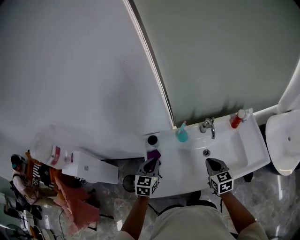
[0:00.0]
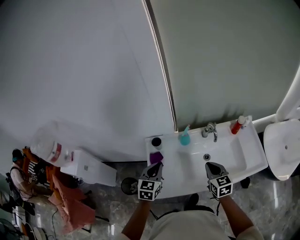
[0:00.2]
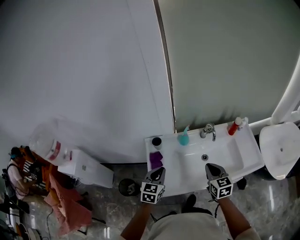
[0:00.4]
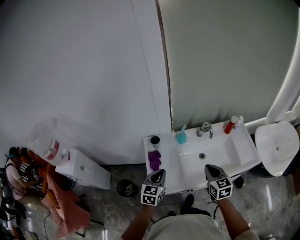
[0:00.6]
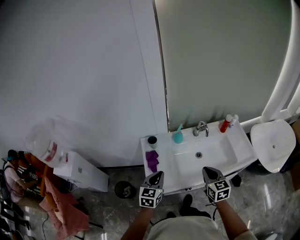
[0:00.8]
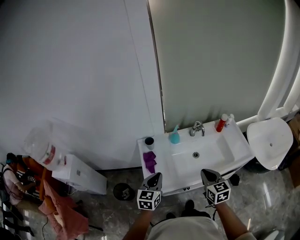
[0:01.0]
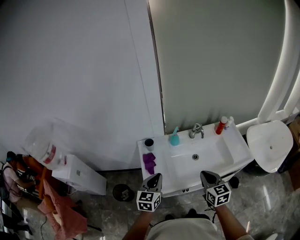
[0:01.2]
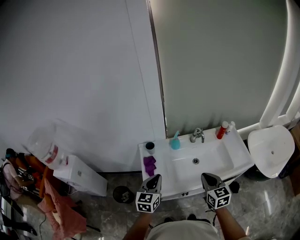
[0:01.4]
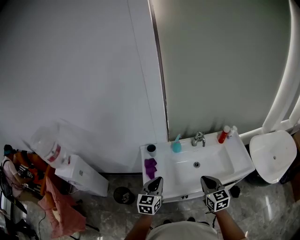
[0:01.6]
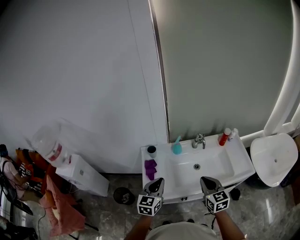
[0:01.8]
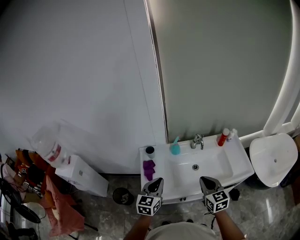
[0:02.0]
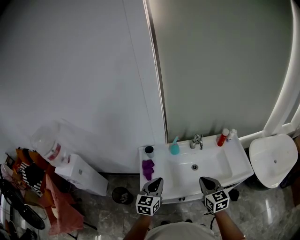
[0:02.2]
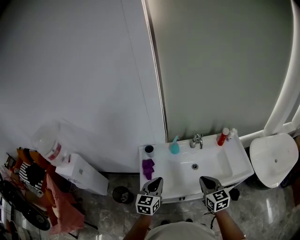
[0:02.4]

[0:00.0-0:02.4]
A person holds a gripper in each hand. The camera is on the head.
0:00.0 to 0:01.2: The left gripper is displaced backward by about 15 cm, while the right gripper moves backward and upward, some 20 cm.
0:01.2 to 0:02.4: The right gripper changes place by roughly 5 cm; the left gripper heads to the right, covering roughly 5 cm.

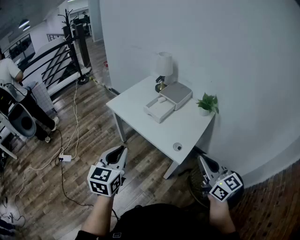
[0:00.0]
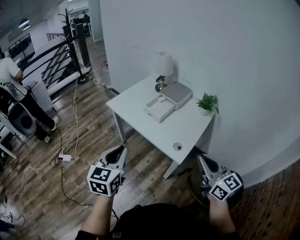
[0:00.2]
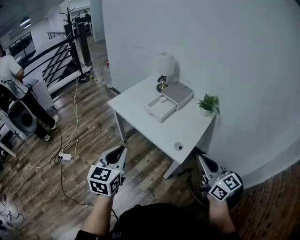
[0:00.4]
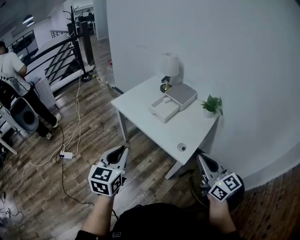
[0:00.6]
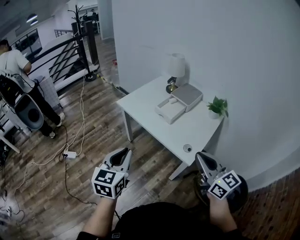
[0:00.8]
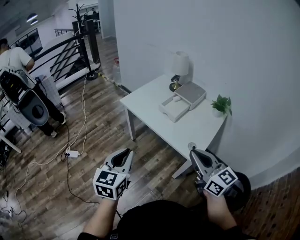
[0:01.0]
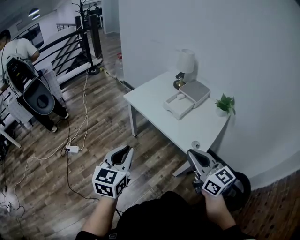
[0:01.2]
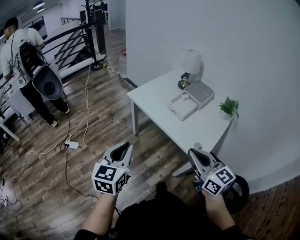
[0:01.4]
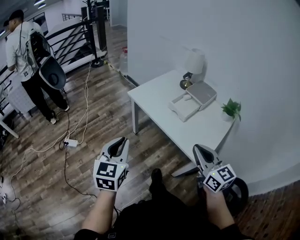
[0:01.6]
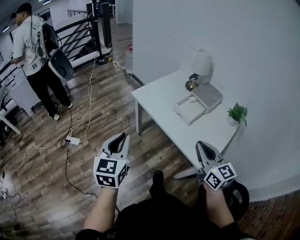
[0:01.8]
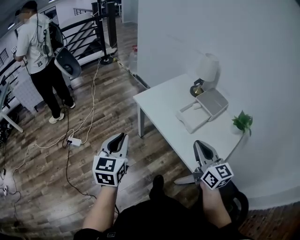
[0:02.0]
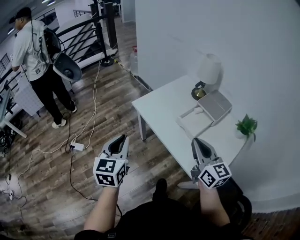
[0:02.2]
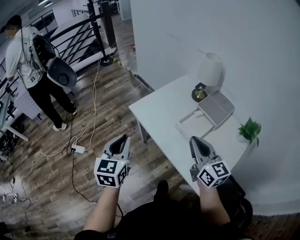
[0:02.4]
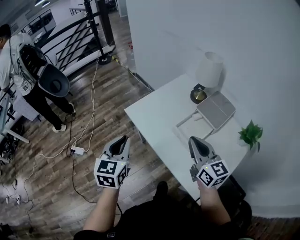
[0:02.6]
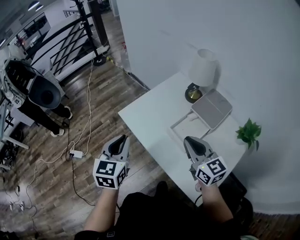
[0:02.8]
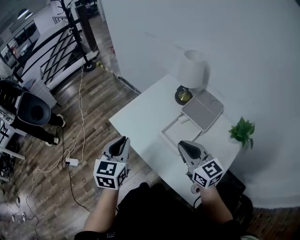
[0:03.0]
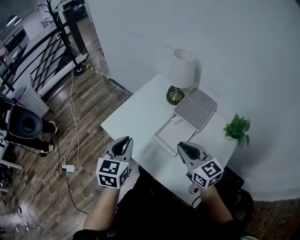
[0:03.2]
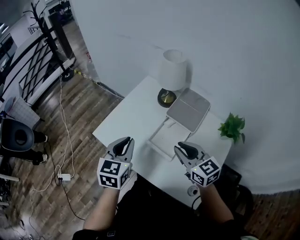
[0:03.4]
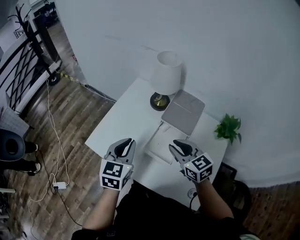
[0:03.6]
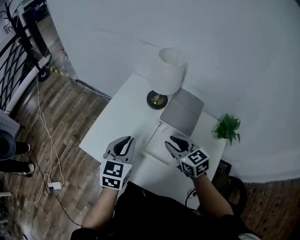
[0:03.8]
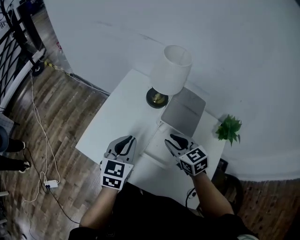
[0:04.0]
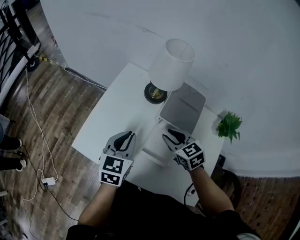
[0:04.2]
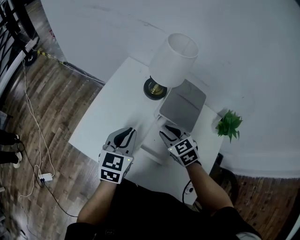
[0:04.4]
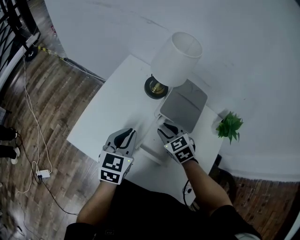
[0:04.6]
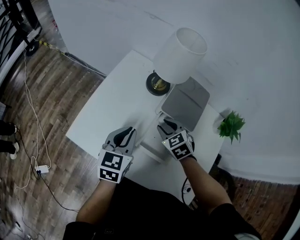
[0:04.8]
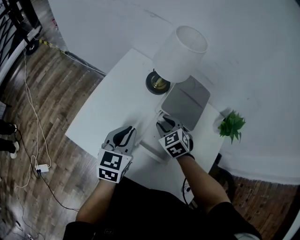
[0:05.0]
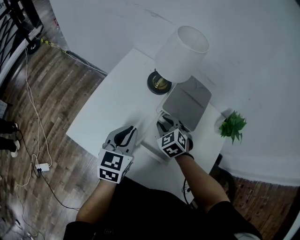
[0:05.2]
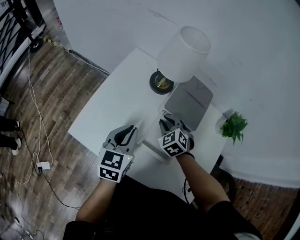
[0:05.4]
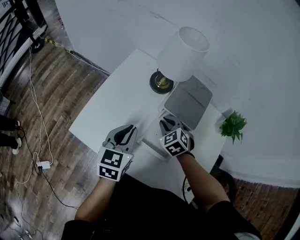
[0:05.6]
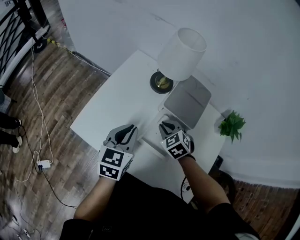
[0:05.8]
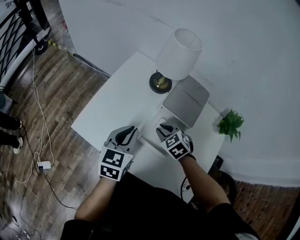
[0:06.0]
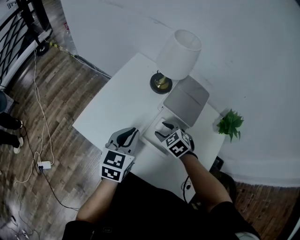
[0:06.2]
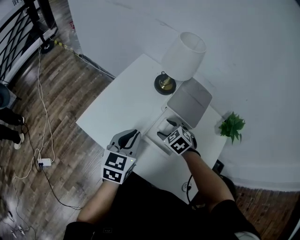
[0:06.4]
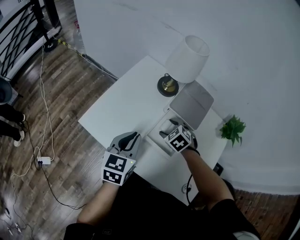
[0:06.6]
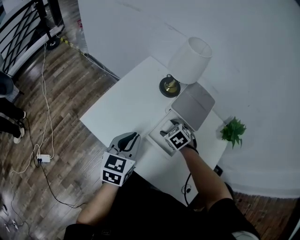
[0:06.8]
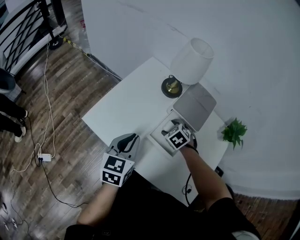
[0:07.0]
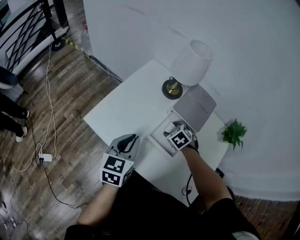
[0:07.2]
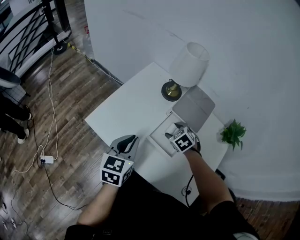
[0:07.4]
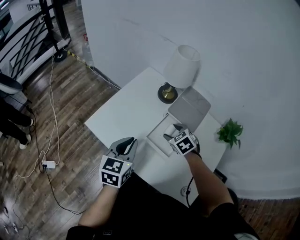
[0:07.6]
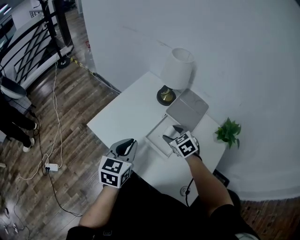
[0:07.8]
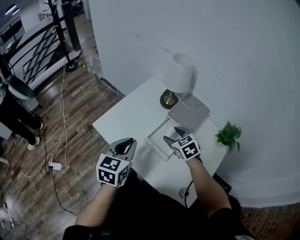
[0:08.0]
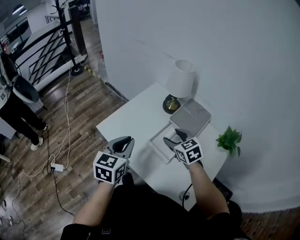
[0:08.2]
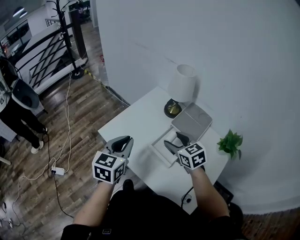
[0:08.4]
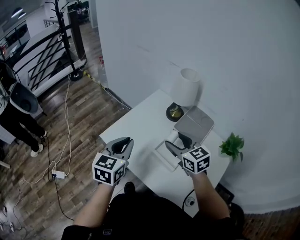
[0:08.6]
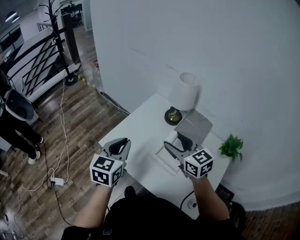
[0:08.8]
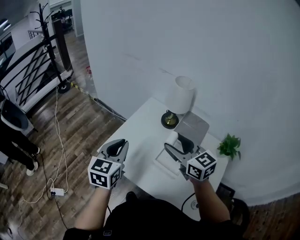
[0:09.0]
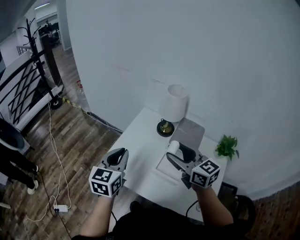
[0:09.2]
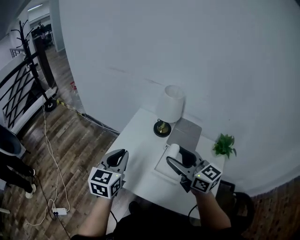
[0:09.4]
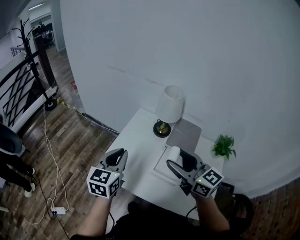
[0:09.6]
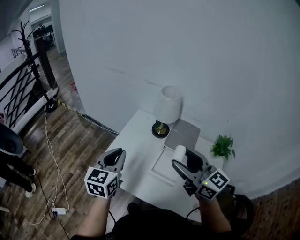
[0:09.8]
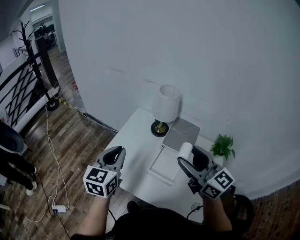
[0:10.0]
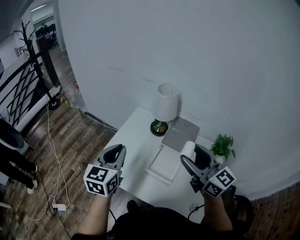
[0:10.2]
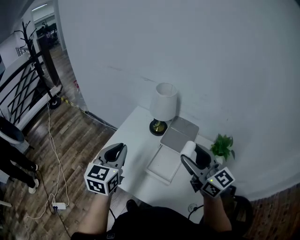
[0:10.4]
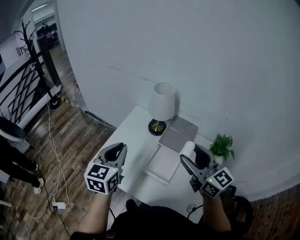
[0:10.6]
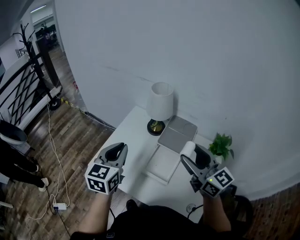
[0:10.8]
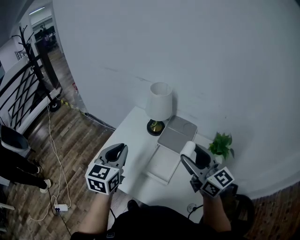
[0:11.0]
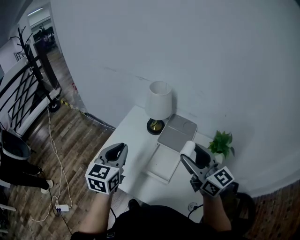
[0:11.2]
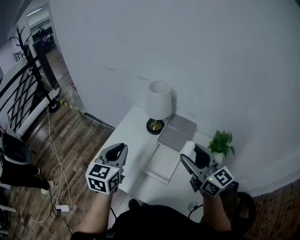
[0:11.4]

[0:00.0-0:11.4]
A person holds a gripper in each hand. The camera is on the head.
0:00.0 to 0:01.4: The two grippers go approximately 15 cm to the left.
0:01.4 to 0:02.8: Both grippers move forward, approximately 35 cm.
0:02.8 to 0:04.2: The right gripper ends up approximately 25 cm from where it was, angles its fingers downward, by approximately 30 degrees, and opens. Meanwhile the left gripper shifts by approximately 30 cm, and changes its angle by some 30 degrees.
0:04.2 to 0:05.6: The right gripper moves downward, approximately 10 cm, and changes its angle by some 30 degrees.
0:05.6 to 0:07.2: The left gripper moves backward, approximately 10 cm, while the right gripper moves roughly 5 cm, and opens.
0:07.2 to 0:08.6: The right gripper travels upward by some 25 cm, and tips its fingers upward by some 40 degrees, while the left gripper is displaced upward by about 10 cm.
0:08.6 to 0:10.0: The left gripper moves forward and upward, roughly 10 cm. Meanwhile the right gripper heads upward, covering roughly 15 cm, and changes its angle by about 30 degrees.
0:10.0 to 0:11.4: The grippers both shift to the right by some 5 cm.

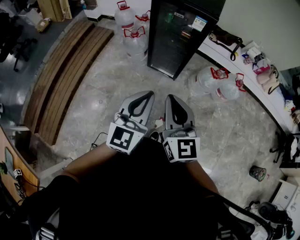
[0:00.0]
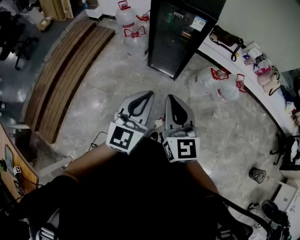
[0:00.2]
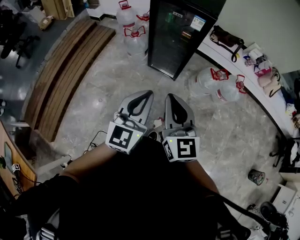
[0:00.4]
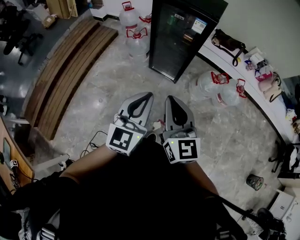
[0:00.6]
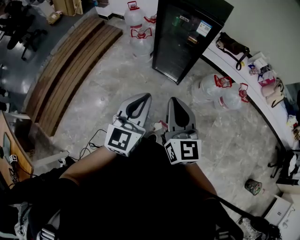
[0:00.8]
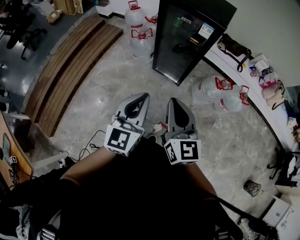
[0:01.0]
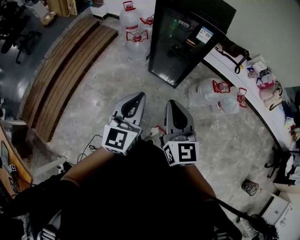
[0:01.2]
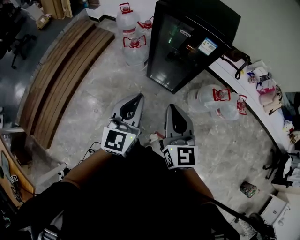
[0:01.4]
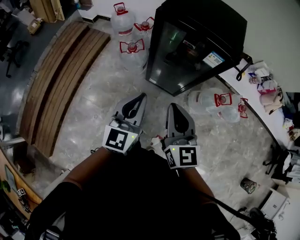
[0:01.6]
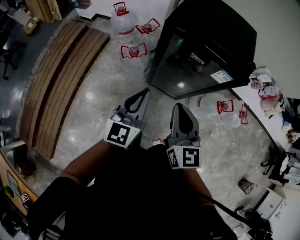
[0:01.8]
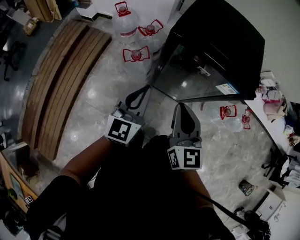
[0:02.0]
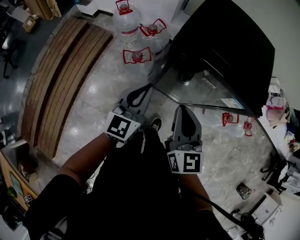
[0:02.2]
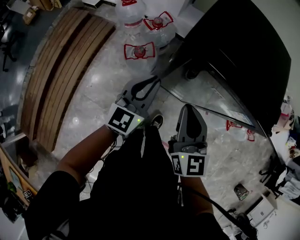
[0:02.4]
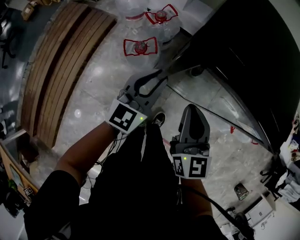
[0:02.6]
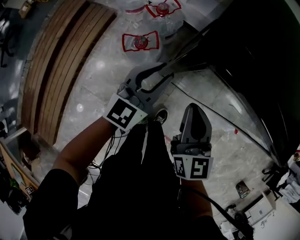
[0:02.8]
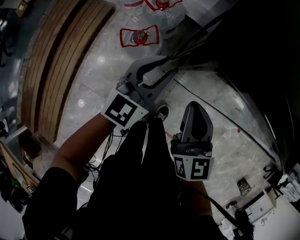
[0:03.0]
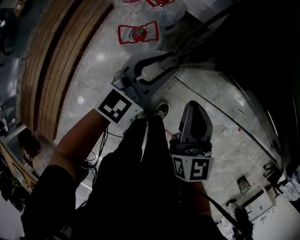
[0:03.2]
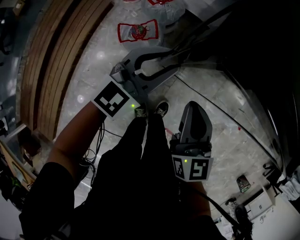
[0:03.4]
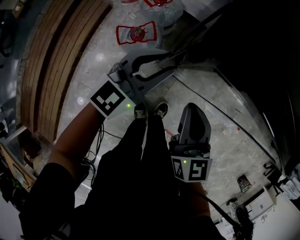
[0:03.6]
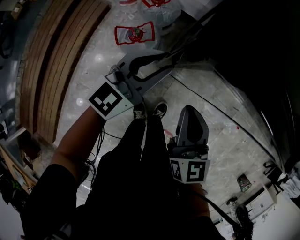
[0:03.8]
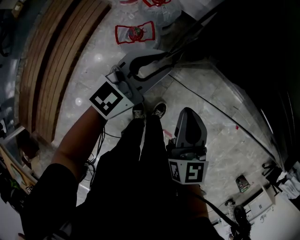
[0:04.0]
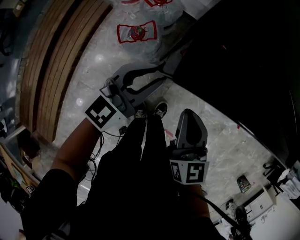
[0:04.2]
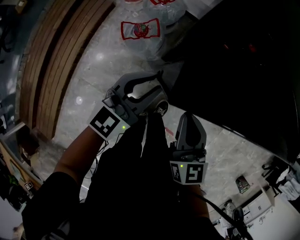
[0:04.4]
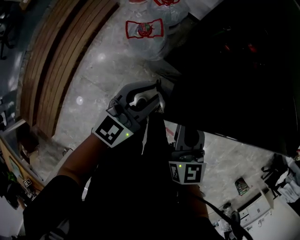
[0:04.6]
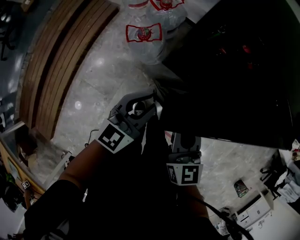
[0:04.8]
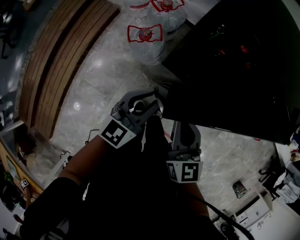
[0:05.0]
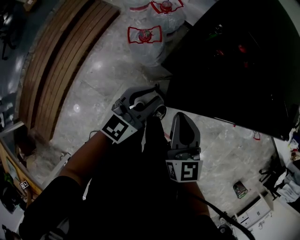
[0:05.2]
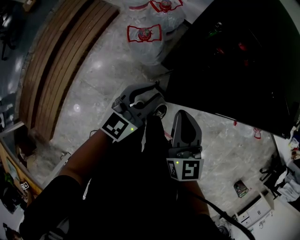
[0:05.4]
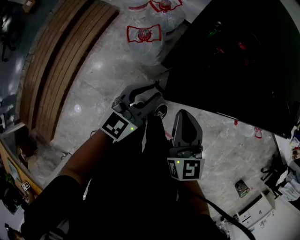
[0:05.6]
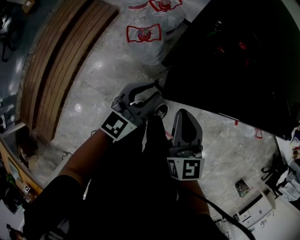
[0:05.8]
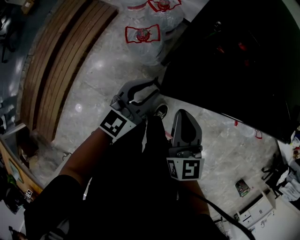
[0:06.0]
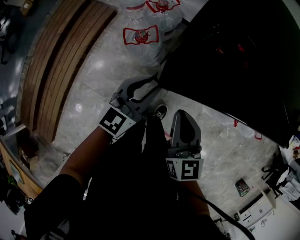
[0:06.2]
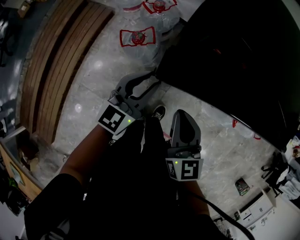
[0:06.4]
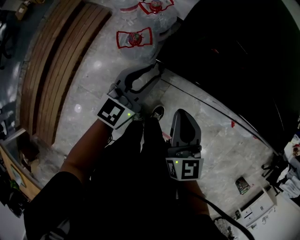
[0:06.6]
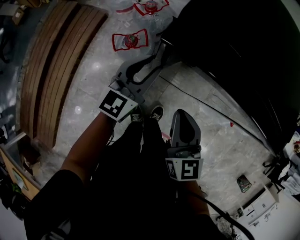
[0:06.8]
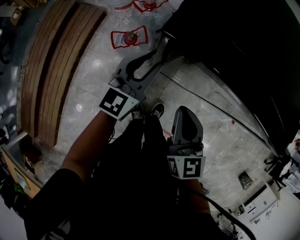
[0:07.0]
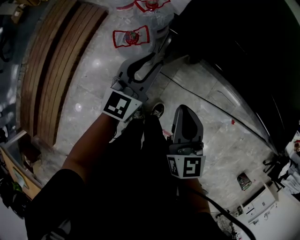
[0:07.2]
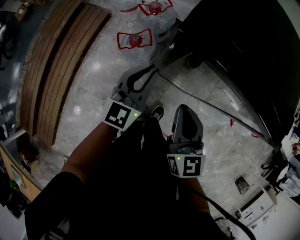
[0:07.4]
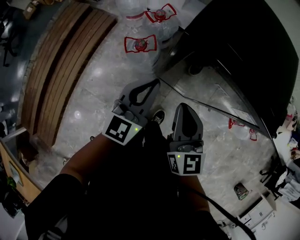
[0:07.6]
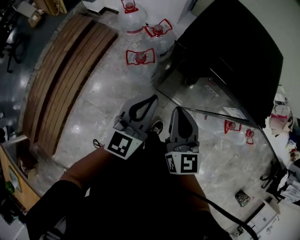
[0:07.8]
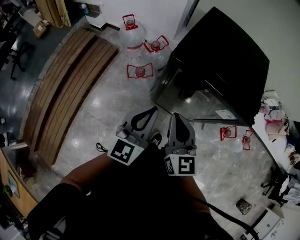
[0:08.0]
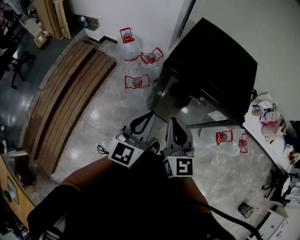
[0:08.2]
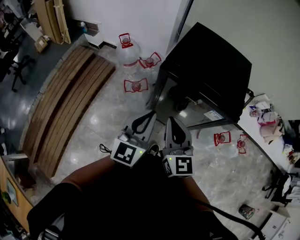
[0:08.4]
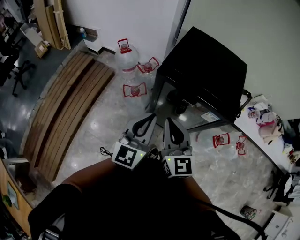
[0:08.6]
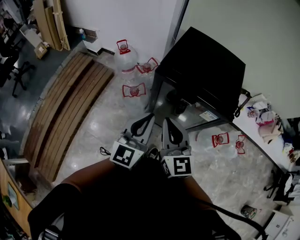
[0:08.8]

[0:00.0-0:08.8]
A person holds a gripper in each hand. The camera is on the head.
0:00.0 to 0:01.4: Both grippers travel together forward, approximately 15 cm.
0:01.4 to 0:03.0: The two grippers travel together, forward, approximately 40 cm. The two grippers go roughly 20 cm downward. The left gripper opens up.
0:03.0 to 0:04.4: The grippers both shift backward by approximately 10 cm.
0:04.4 to 0:05.8: The right gripper moves roughly 5 cm, while the left gripper moves backward, approximately 5 cm.
0:05.8 to 0:07.4: The right gripper moves forward, roughly 5 cm, while the left gripper goes some 10 cm forward.
0:07.4 to 0:08.8: The right gripper goes about 20 cm upward. The left gripper moves upward and backward, about 25 cm.

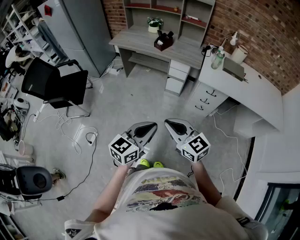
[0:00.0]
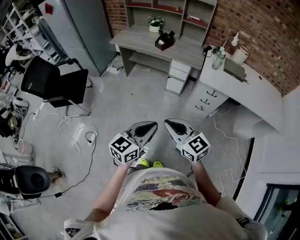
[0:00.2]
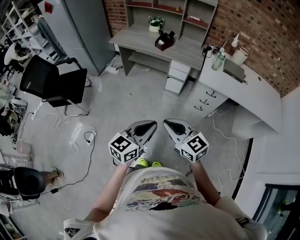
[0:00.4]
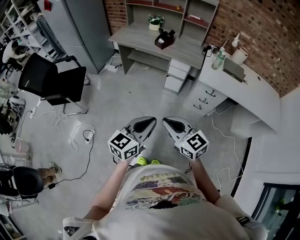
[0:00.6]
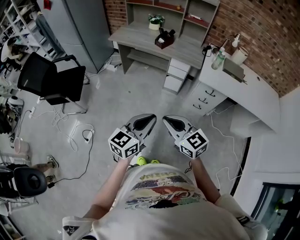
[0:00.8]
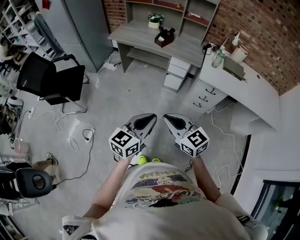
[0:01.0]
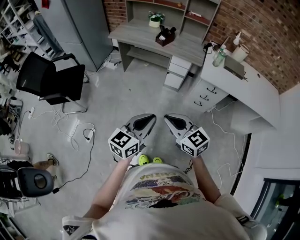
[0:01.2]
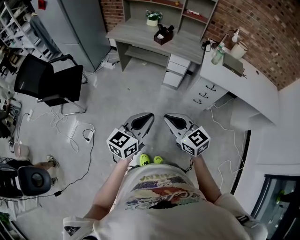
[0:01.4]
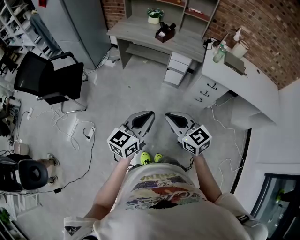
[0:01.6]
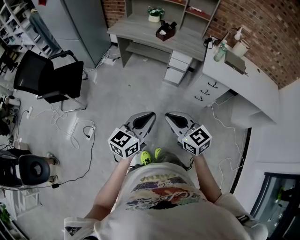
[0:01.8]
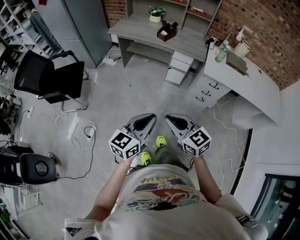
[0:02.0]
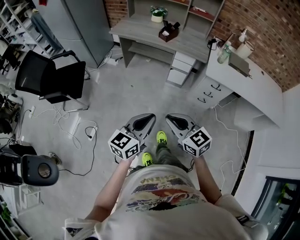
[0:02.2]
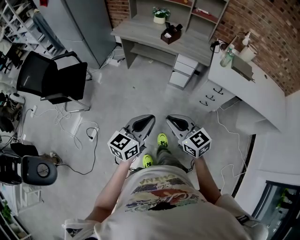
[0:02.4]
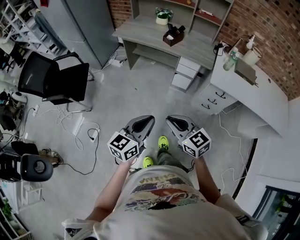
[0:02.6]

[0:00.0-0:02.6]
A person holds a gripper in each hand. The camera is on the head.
0:00.0 to 0:01.2: The left gripper shifts by some 5 cm.
0:01.2 to 0:02.6: The two grippers go approximately 5 cm forward.
